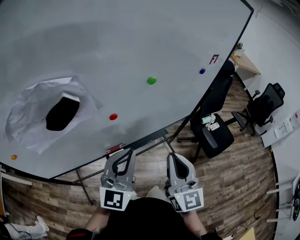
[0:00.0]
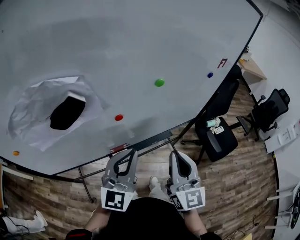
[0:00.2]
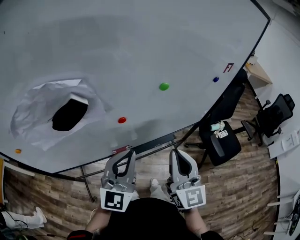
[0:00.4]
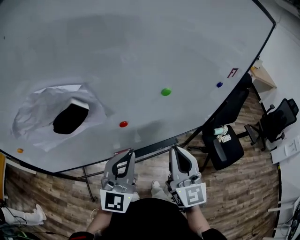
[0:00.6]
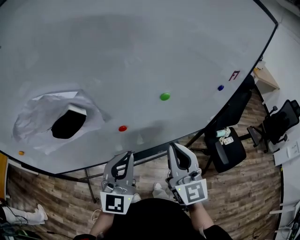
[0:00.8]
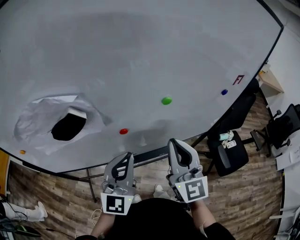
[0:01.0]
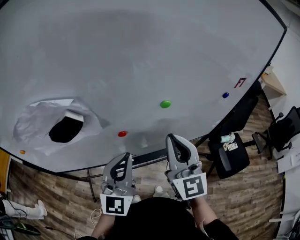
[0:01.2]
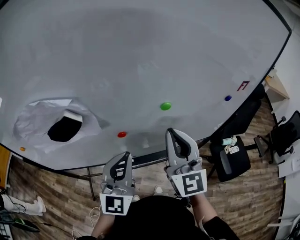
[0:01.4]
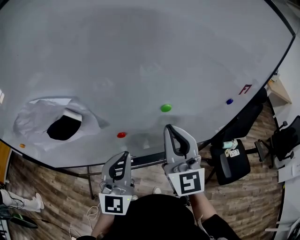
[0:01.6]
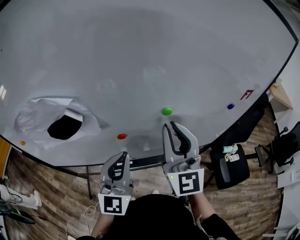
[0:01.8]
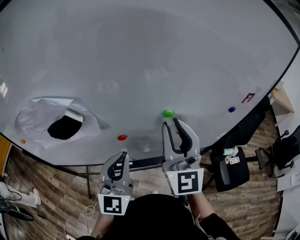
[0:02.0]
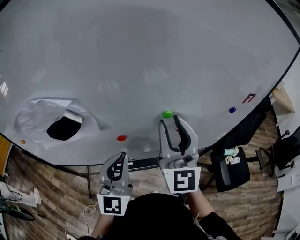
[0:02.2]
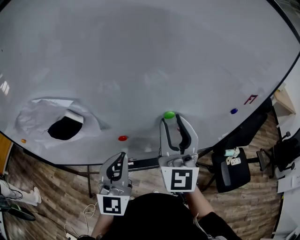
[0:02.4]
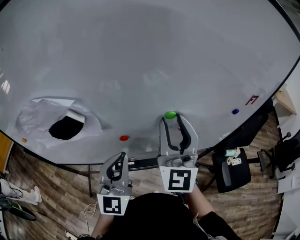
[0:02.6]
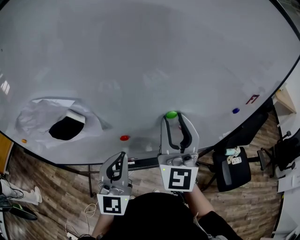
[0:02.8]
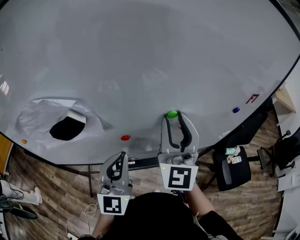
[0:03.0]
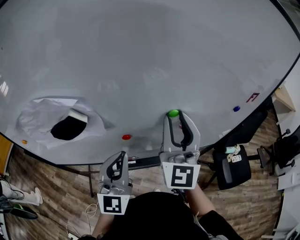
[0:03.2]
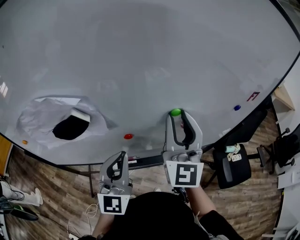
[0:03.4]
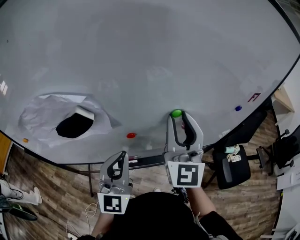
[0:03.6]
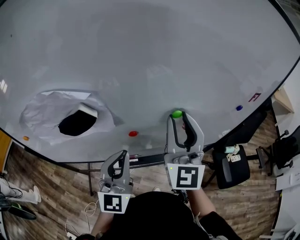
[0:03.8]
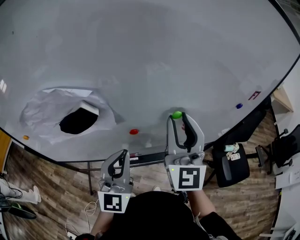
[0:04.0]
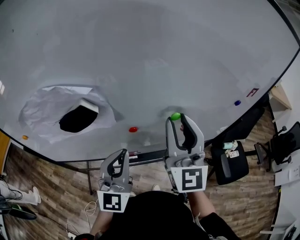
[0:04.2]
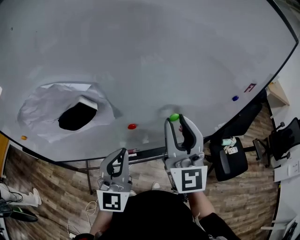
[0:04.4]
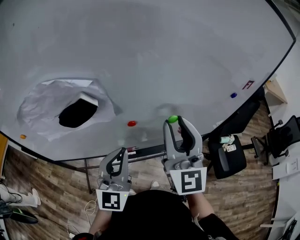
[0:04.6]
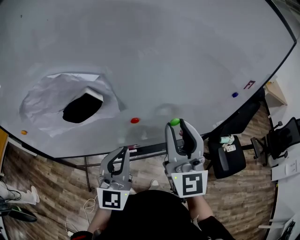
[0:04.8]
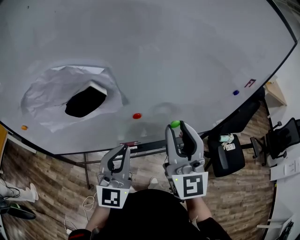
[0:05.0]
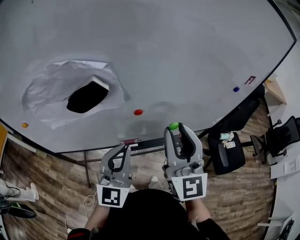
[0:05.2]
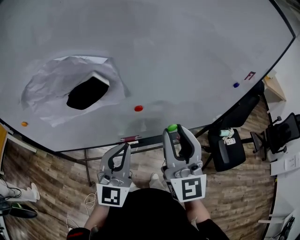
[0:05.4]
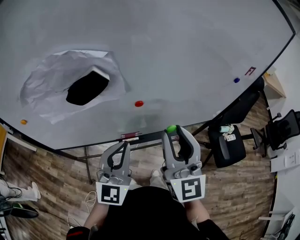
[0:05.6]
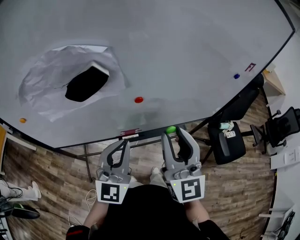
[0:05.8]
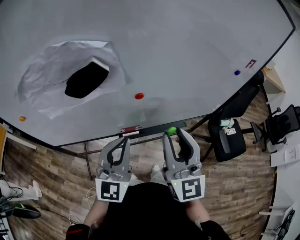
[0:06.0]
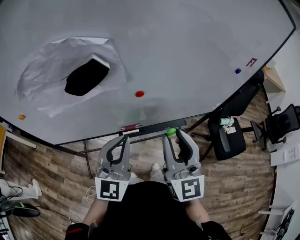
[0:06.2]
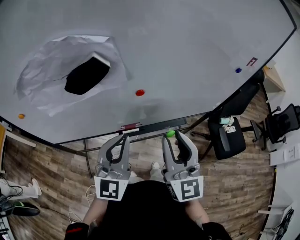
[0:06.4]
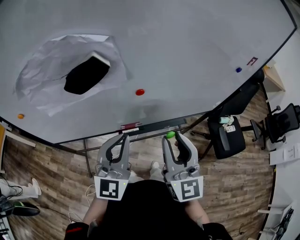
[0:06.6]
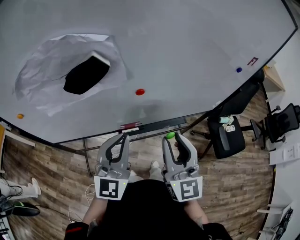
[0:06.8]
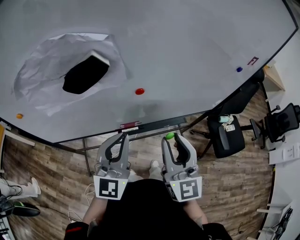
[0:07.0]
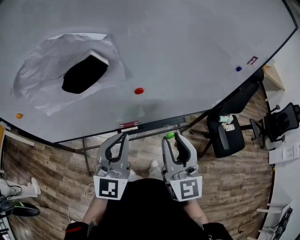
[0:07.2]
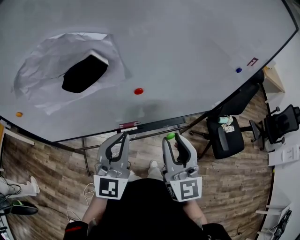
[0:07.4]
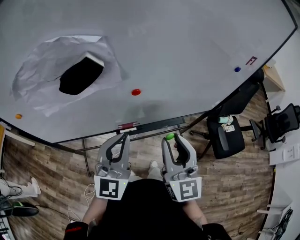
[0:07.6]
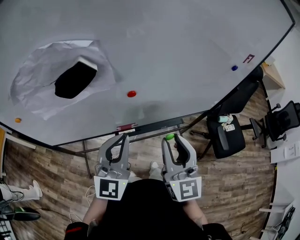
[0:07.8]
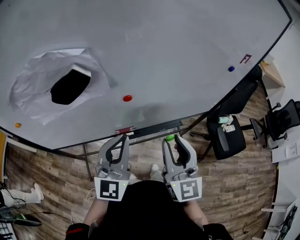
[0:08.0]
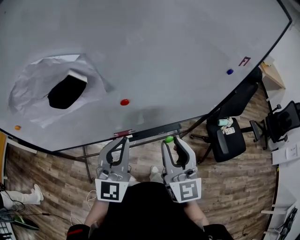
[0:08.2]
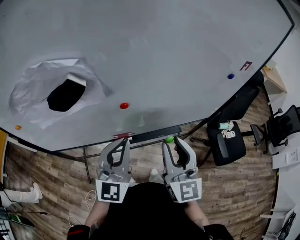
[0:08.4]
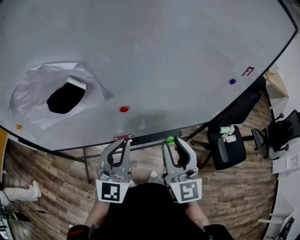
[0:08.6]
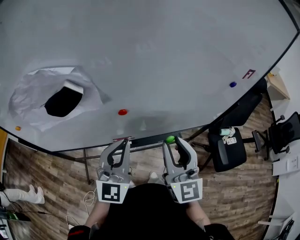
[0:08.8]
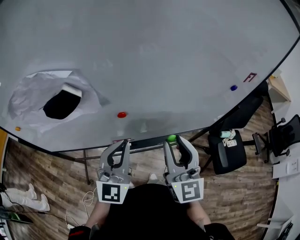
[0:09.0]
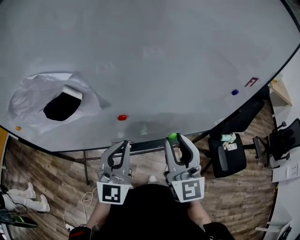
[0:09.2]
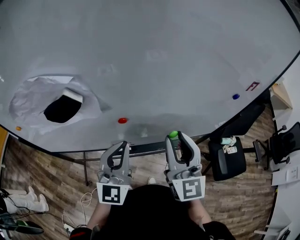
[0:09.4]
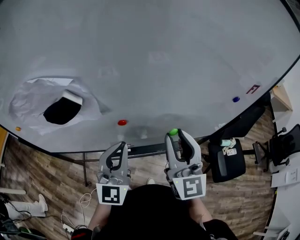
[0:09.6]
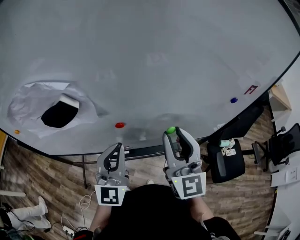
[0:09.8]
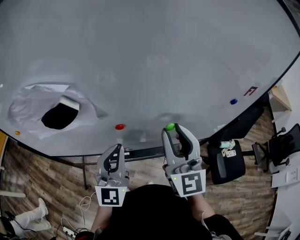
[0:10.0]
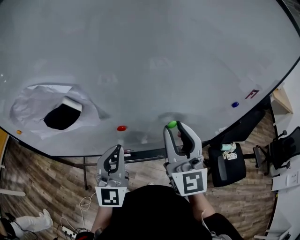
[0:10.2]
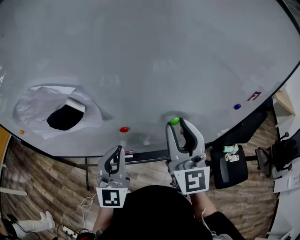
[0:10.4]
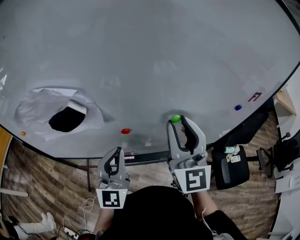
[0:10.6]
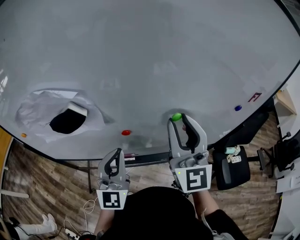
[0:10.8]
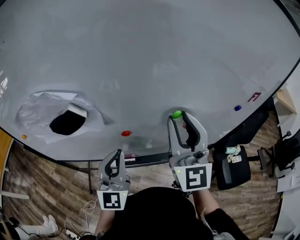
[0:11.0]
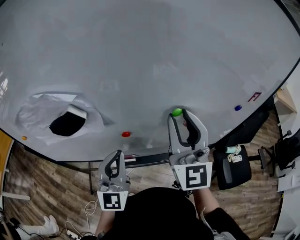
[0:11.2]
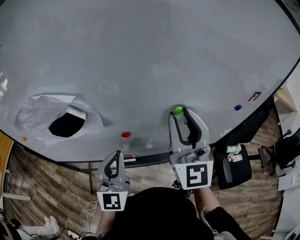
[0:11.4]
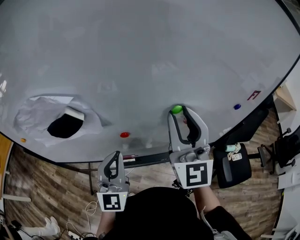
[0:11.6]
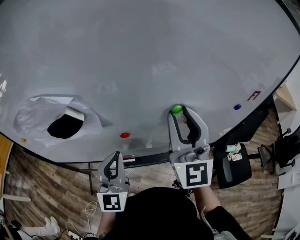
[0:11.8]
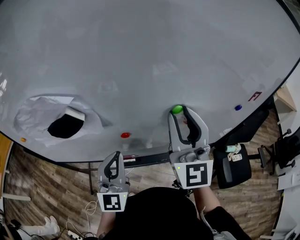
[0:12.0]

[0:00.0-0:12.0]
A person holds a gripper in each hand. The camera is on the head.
0:00.0 to 0:01.6: The left gripper is displaced forward by some 5 cm, and swivels about 20 degrees; the right gripper travels forward and upward by some 20 cm, and swivels about 20 degrees.
0:01.6 to 0:03.0: The right gripper opens up.
0:03.0 to 0:04.4: The right gripper ends up approximately 5 cm from where it was.
0:04.4 to 0:06.0: The left gripper shifts approximately 5 cm backward. The right gripper heads backward and downward, covering some 15 cm.
0:06.0 to 0:07.6: The grippers make only small movements.
0:07.6 to 0:09.0: The left gripper goes approximately 5 cm forward. The right gripper shifts approximately 10 cm forward and to the right.
0:09.0 to 0:10.4: The right gripper moves forward and upward, roughly 10 cm.
0:10.4 to 0:12.0: The grippers move only a little.

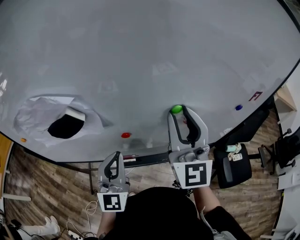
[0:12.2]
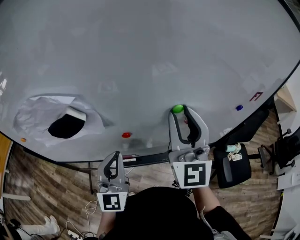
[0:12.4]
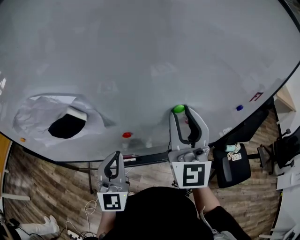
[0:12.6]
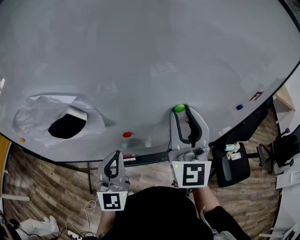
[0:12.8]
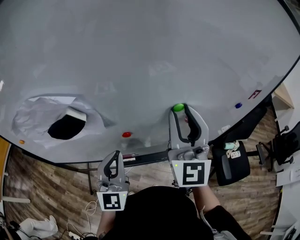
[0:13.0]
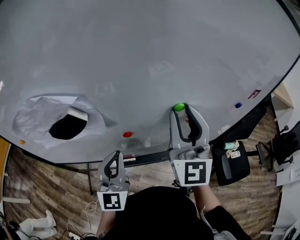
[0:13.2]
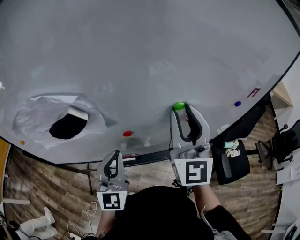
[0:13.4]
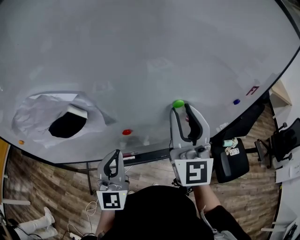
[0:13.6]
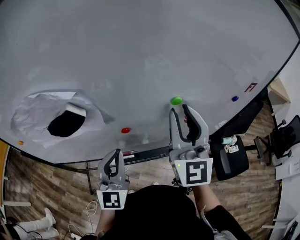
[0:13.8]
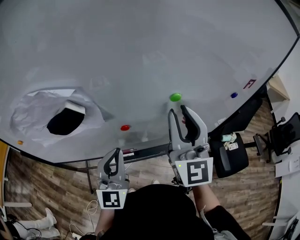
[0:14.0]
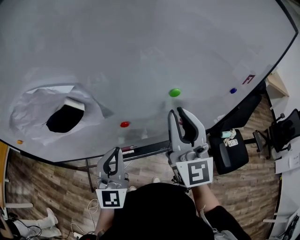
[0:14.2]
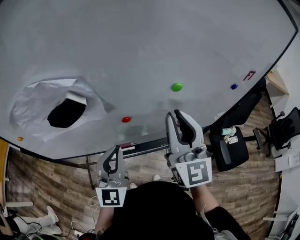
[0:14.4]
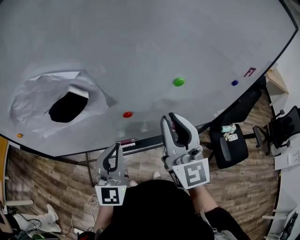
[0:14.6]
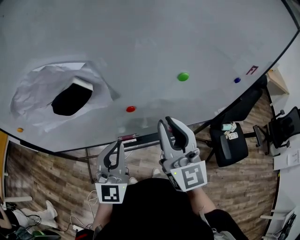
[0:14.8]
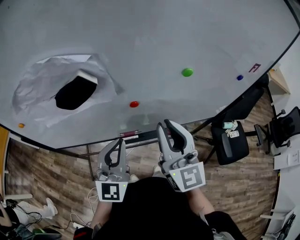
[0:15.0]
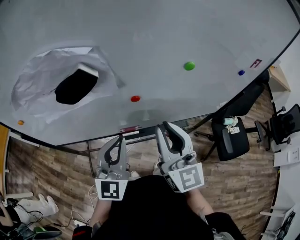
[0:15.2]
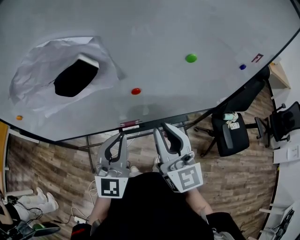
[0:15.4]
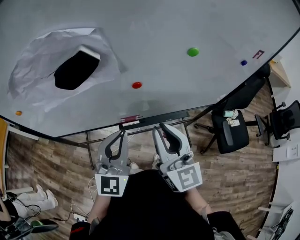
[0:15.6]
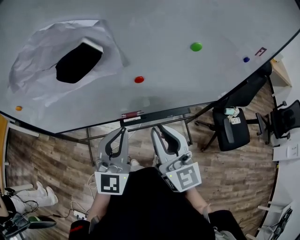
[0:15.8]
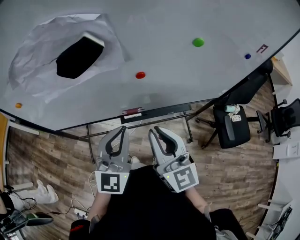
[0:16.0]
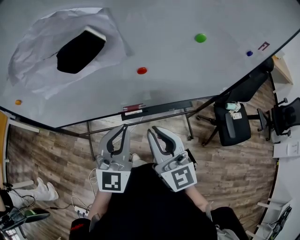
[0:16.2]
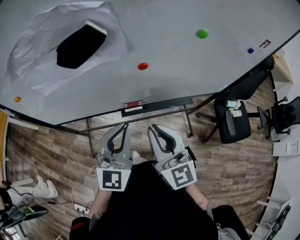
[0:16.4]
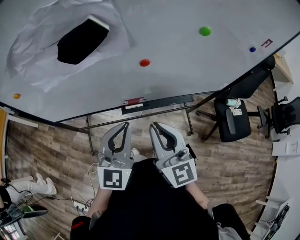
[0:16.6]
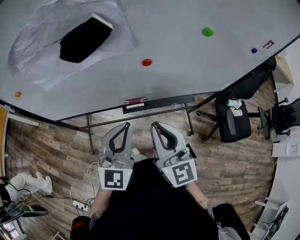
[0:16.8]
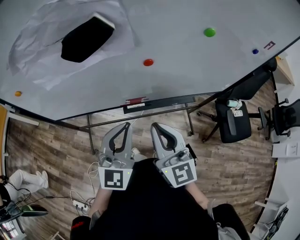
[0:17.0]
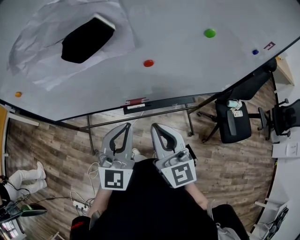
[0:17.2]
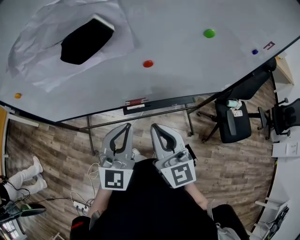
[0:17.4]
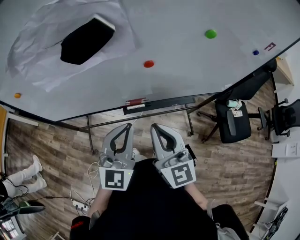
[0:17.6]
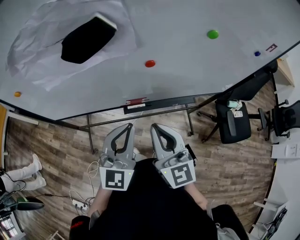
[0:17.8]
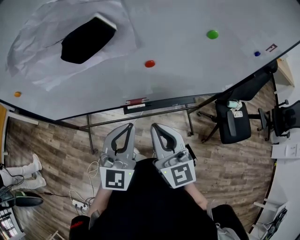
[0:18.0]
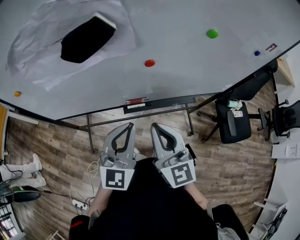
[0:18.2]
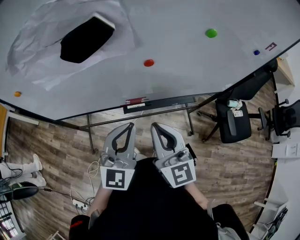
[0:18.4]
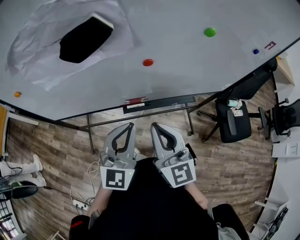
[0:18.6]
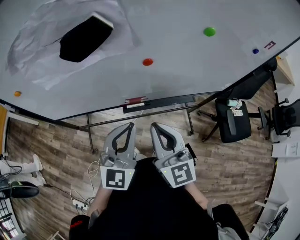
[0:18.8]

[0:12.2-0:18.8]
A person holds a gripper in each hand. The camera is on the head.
0:12.2 to 0:13.8: The grippers make only small movements.
0:13.8 to 0:15.4: The right gripper travels downward, backward and to the left by some 20 cm, and changes its angle by about 20 degrees. Meanwhile the left gripper is displaced backward by roughly 5 cm.
0:15.4 to 0:17.2: The left gripper changes place by approximately 5 cm, while the right gripper goes about 10 cm downward and backward.
0:17.2 to 0:18.8: Both grippers stay put.

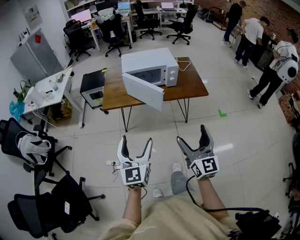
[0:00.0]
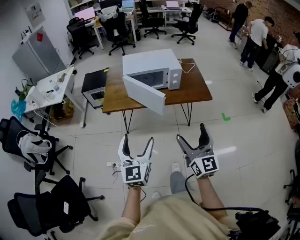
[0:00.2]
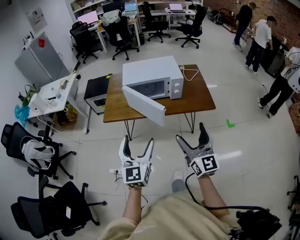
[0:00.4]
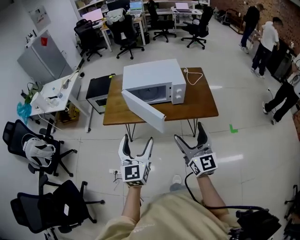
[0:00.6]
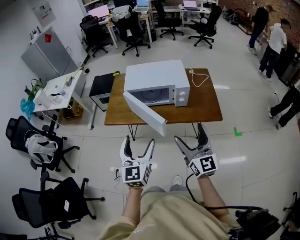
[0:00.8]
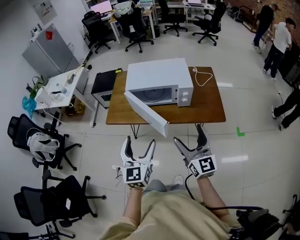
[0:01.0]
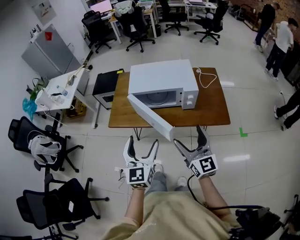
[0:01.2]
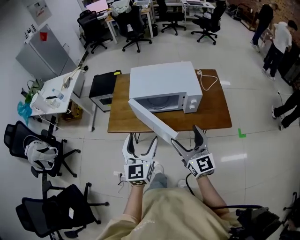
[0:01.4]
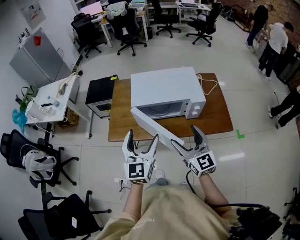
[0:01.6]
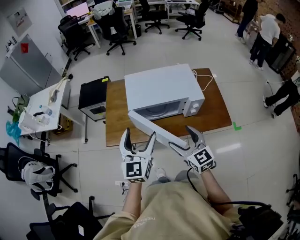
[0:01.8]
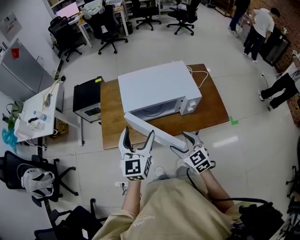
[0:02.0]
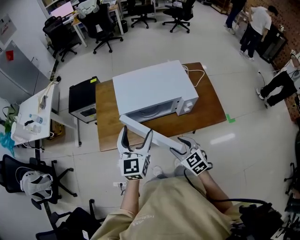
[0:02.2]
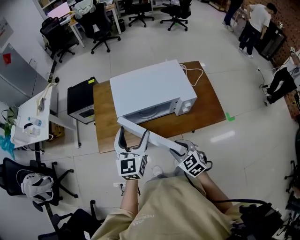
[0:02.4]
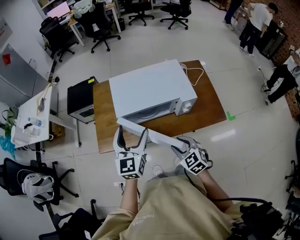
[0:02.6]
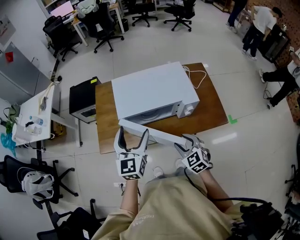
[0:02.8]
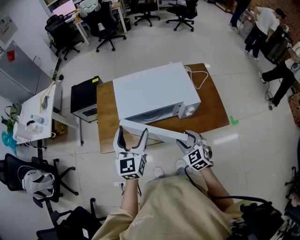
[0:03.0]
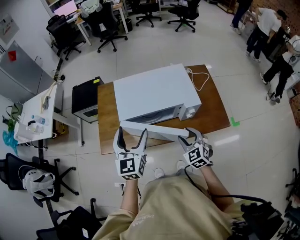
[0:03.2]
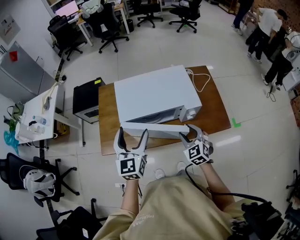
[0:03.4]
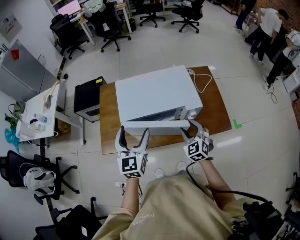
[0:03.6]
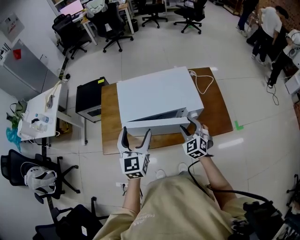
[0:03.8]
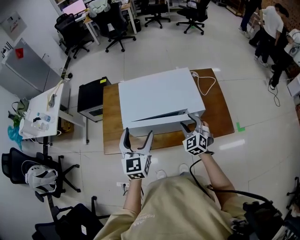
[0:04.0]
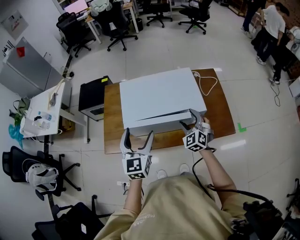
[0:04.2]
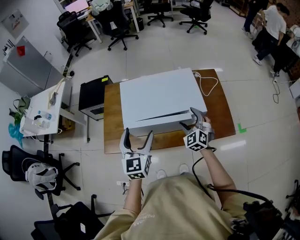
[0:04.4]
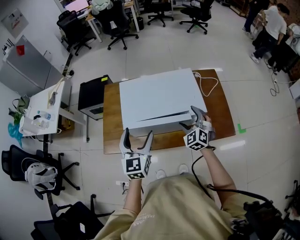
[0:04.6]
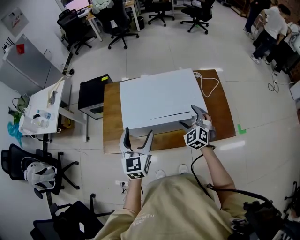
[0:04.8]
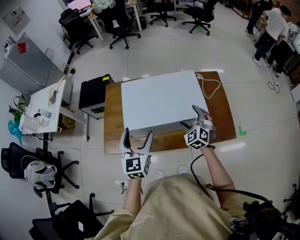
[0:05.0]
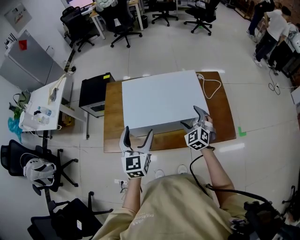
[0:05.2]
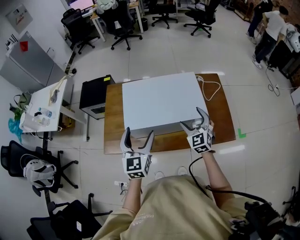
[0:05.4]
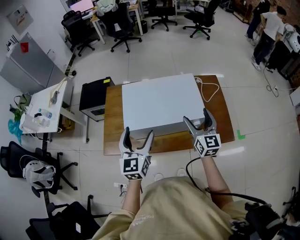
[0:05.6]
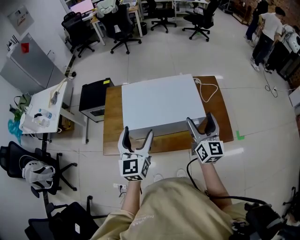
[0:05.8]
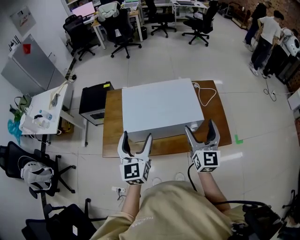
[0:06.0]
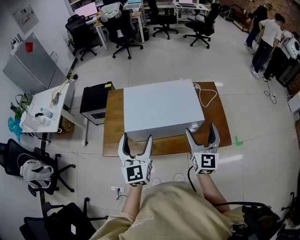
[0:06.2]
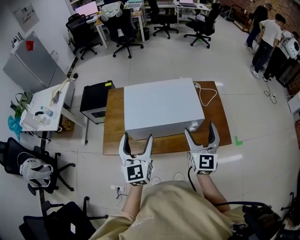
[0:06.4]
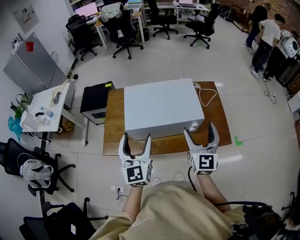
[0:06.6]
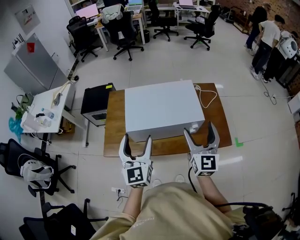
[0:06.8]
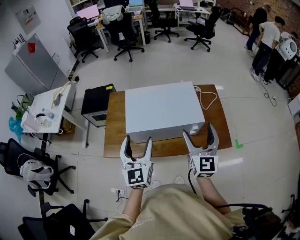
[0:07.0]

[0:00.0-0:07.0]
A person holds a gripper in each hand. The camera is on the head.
0:00.0 to 0:01.4: The two grippers travel together, forward, roughly 40 cm.
0:01.4 to 0:02.8: The left gripper shifts roughly 20 cm forward; the right gripper is displaced forward and downward by approximately 20 cm, angles its fingers downward, by roughly 40 degrees, and closes up.
0:02.8 to 0:04.2: The left gripper goes about 5 cm to the right. The right gripper shifts approximately 20 cm forward and to the right, and changes its angle by roughly 20 degrees.
0:04.2 to 0:05.6: The right gripper shifts some 15 cm upward, and rotates around the line of its fingers by roughly 40 degrees, clockwise from behind.
0:05.6 to 0:07.0: The right gripper moves backward and upward, some 15 cm, while the left gripper goes roughly 10 cm backward.
